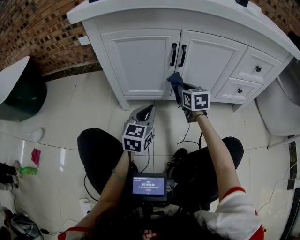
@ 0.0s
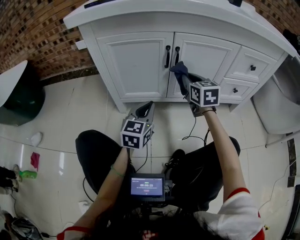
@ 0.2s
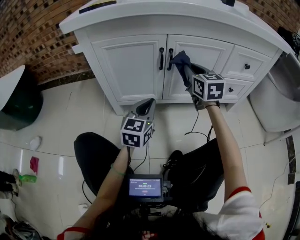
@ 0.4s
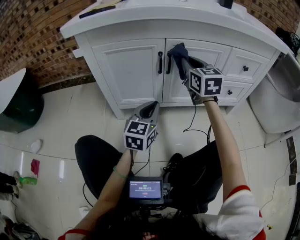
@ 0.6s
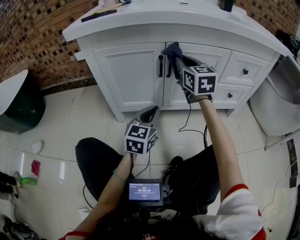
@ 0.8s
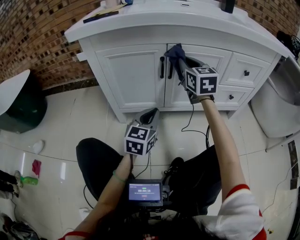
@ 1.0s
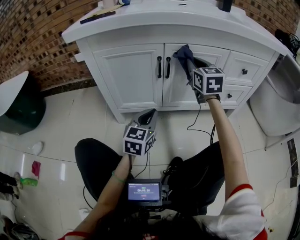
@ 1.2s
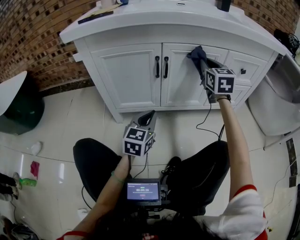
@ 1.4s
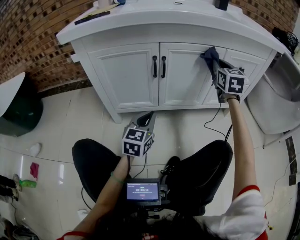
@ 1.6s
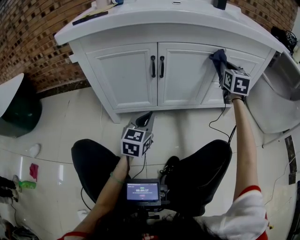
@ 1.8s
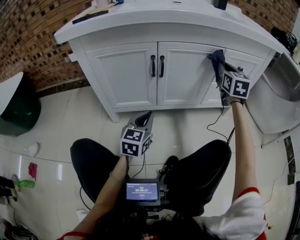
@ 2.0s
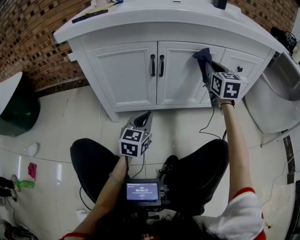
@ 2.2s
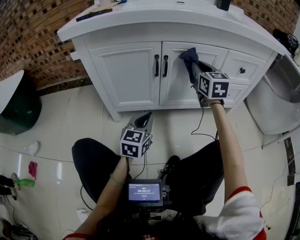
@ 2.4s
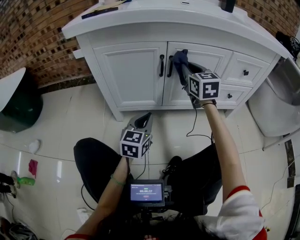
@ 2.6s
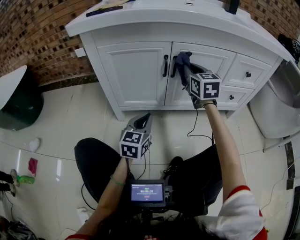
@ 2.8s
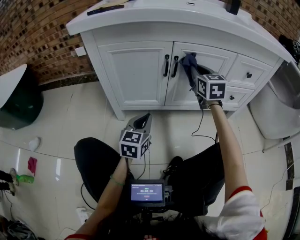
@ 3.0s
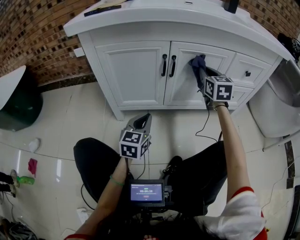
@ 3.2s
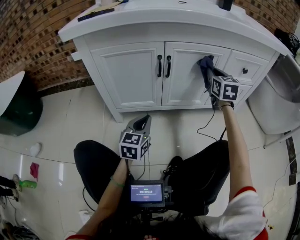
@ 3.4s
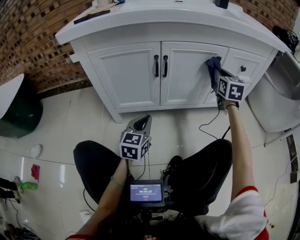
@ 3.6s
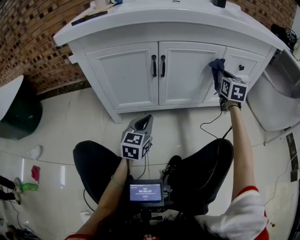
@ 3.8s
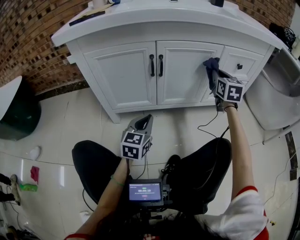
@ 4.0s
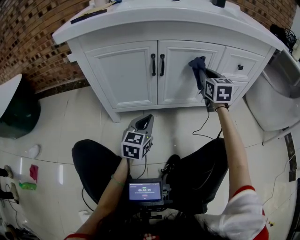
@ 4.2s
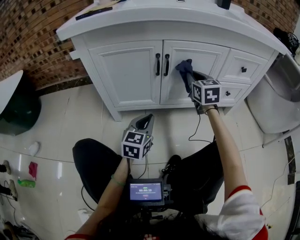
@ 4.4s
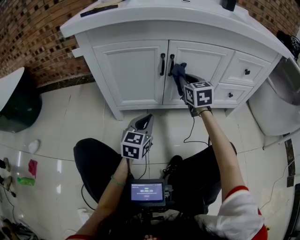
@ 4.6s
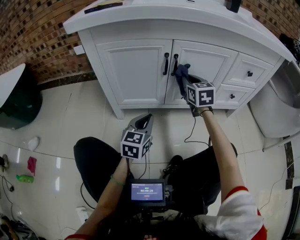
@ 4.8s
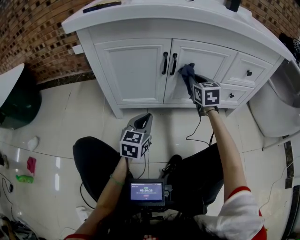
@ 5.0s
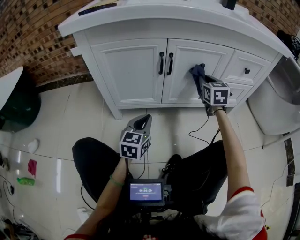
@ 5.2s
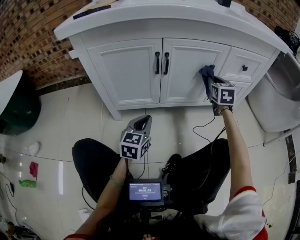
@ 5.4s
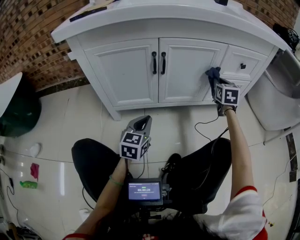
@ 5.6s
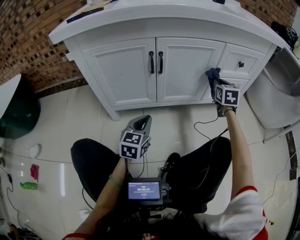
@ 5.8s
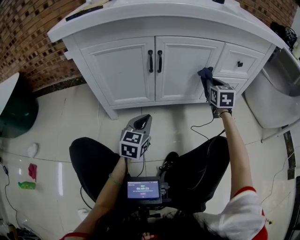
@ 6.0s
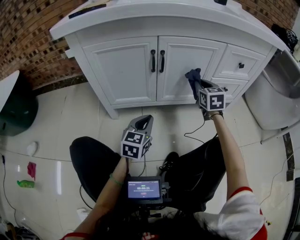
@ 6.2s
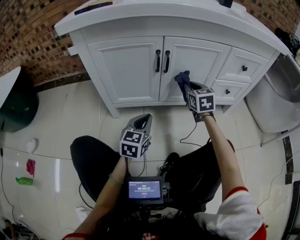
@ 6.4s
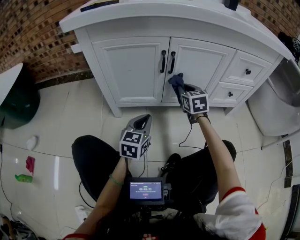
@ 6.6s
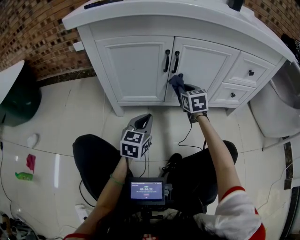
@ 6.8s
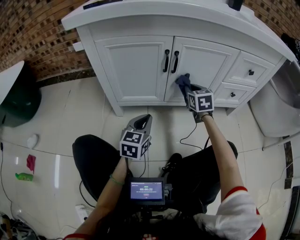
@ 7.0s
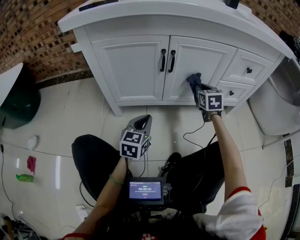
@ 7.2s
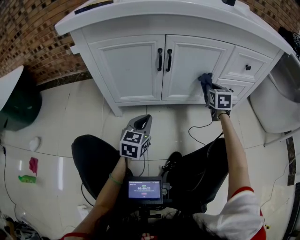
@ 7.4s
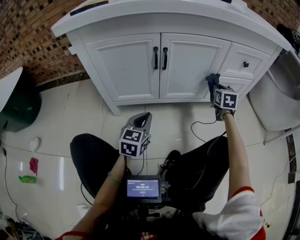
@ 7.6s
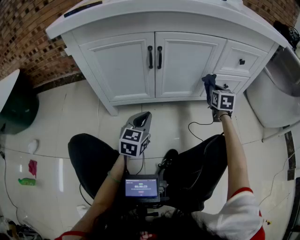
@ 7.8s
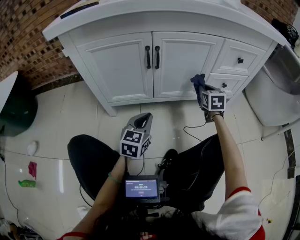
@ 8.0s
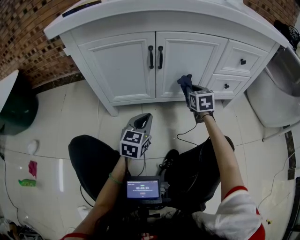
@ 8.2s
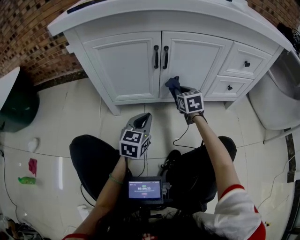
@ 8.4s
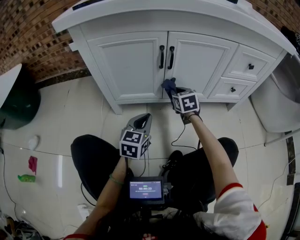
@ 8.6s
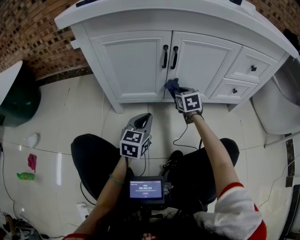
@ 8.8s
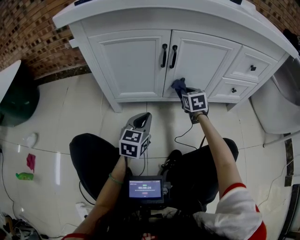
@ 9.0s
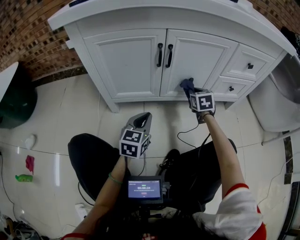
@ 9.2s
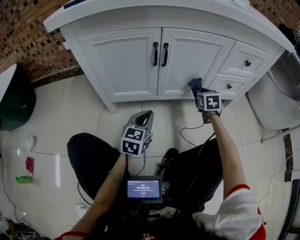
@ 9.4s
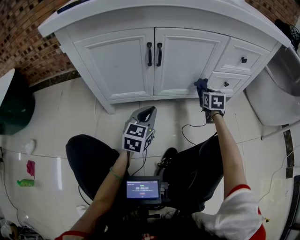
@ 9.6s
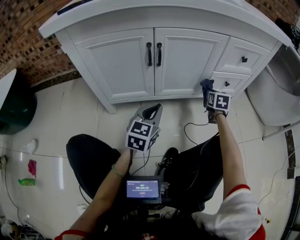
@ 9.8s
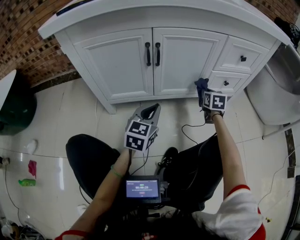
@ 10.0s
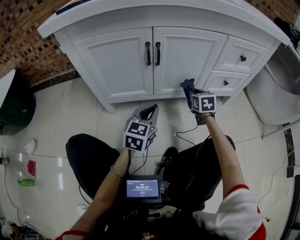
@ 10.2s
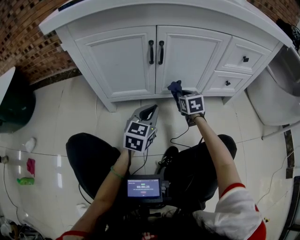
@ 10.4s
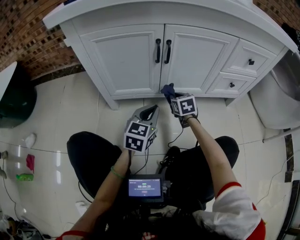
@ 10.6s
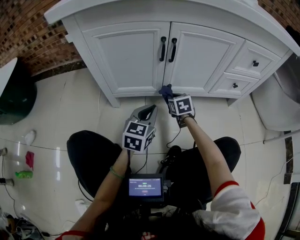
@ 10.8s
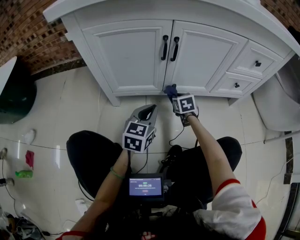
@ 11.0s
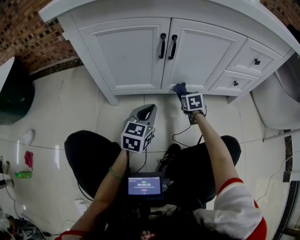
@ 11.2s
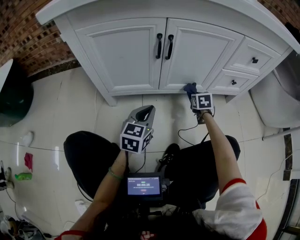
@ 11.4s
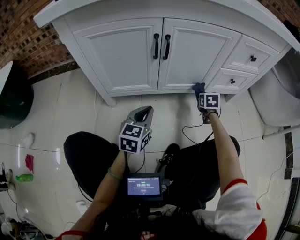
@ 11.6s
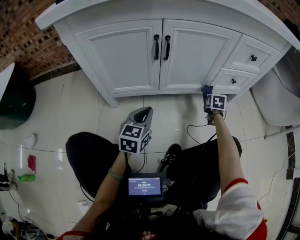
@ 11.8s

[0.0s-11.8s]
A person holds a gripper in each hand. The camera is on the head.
0.0s to 1.4s: The right gripper shifts approximately 25 cm upward and to the right, and turns by approximately 30 degrees. The left gripper travels to the right by some 5 cm.
1.4s to 3.0s: The two grippers go some 5 cm to the left.
3.0s to 4.4s: The right gripper goes to the right and returns, about 20 cm each way.
4.4s to 6.0s: The right gripper swings left and right, approximately 25 cm each way, with 2 reversals.
6.0s to 7.4s: The right gripper moves downward, about 5 cm, and goes to the left and returns, about 20 cm each way.
7.4s to 8.8s: The right gripper is displaced to the left and downward by approximately 20 cm.
8.8s to 10.4s: The left gripper is displaced to the right by about 5 cm, while the right gripper goes to the right and returns, roughly 25 cm each way.
10.4s to 11.8s: The left gripper moves about 5 cm; the right gripper goes some 20 cm to the right and downward, and rotates some 30 degrees.

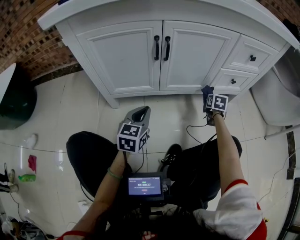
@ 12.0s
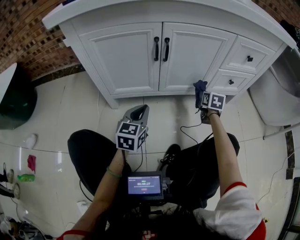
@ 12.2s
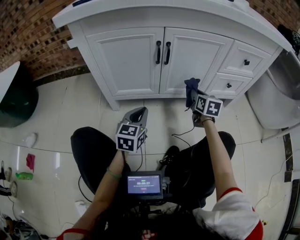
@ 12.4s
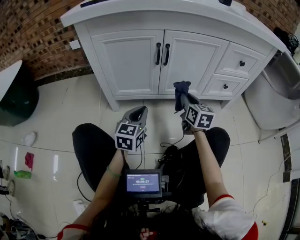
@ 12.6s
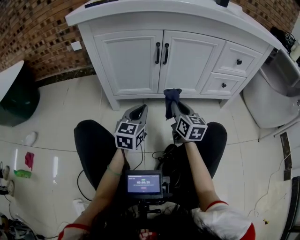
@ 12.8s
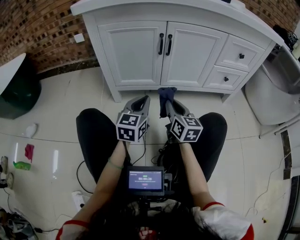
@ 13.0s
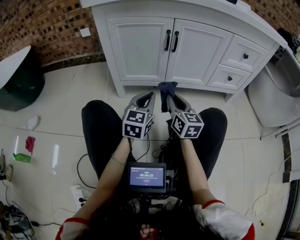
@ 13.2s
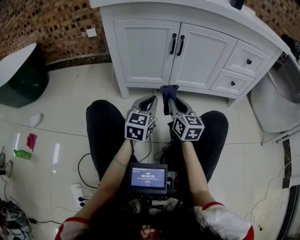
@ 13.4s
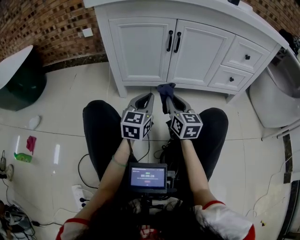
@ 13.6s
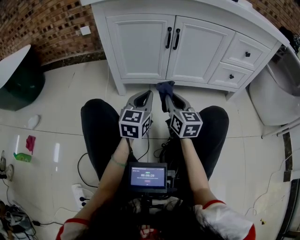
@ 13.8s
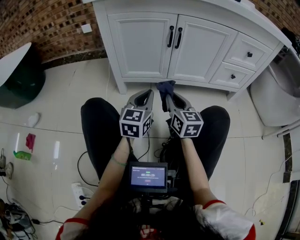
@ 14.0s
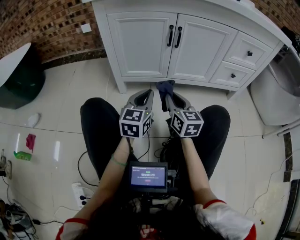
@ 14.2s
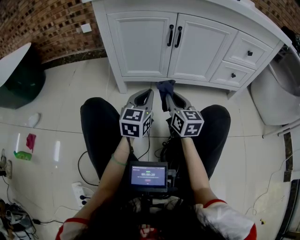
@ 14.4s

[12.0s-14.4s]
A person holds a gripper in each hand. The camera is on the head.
12.0s to 13.2s: The left gripper travels backward and upward by roughly 15 cm. Meanwhile the right gripper goes approximately 40 cm to the left, backward and upward, and tilts its fingers some 40 degrees upward.
13.2s to 14.4s: The grippers make only small movements.

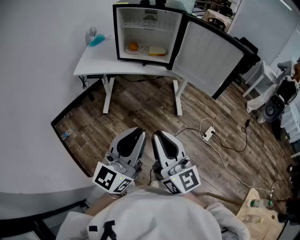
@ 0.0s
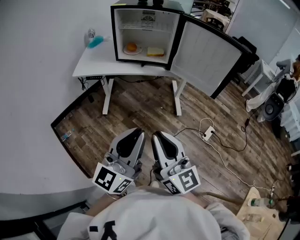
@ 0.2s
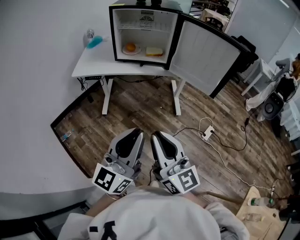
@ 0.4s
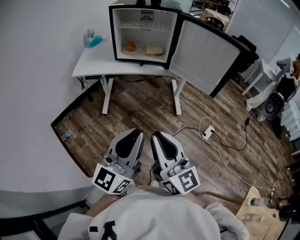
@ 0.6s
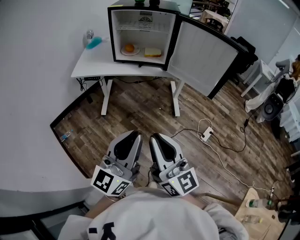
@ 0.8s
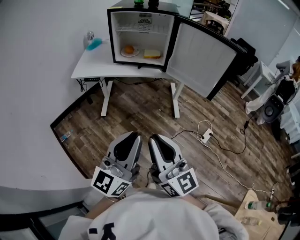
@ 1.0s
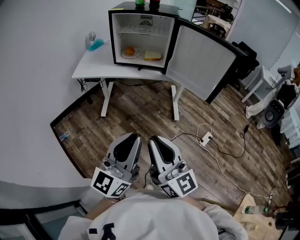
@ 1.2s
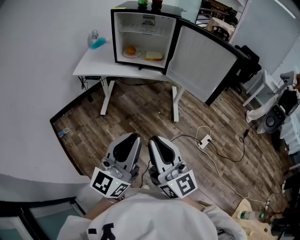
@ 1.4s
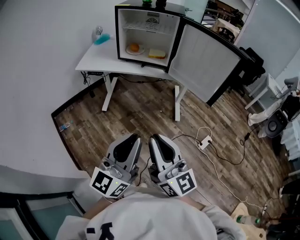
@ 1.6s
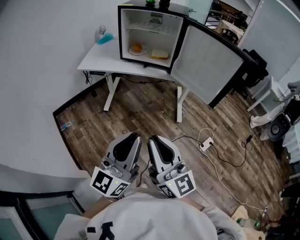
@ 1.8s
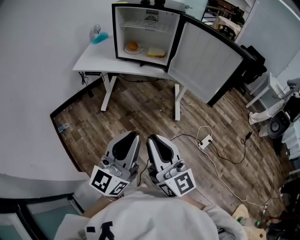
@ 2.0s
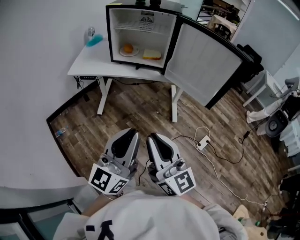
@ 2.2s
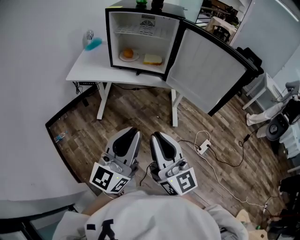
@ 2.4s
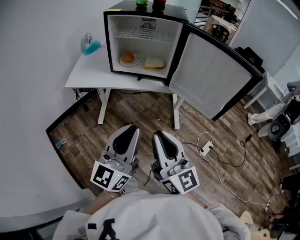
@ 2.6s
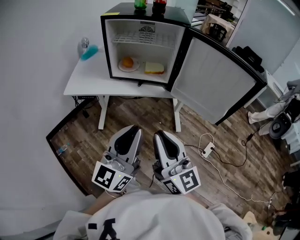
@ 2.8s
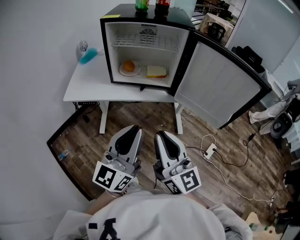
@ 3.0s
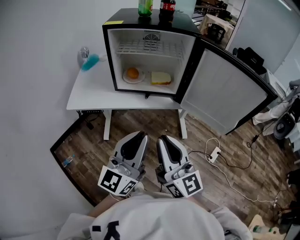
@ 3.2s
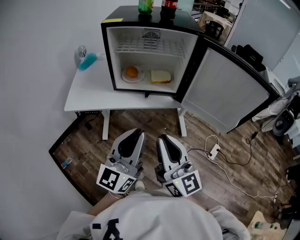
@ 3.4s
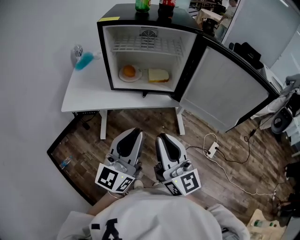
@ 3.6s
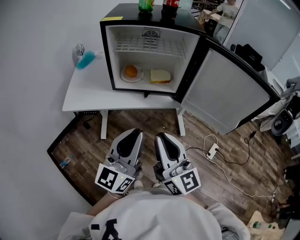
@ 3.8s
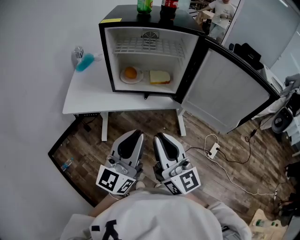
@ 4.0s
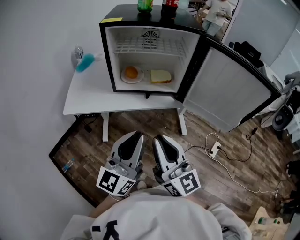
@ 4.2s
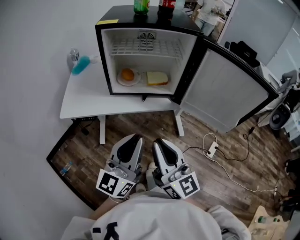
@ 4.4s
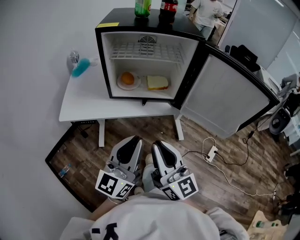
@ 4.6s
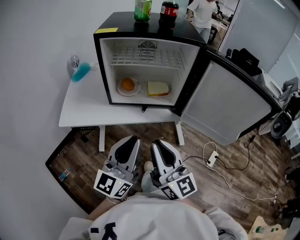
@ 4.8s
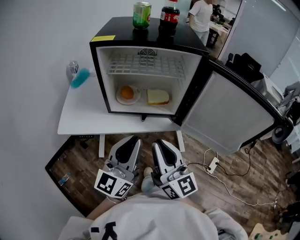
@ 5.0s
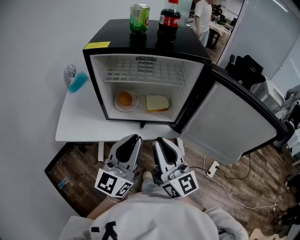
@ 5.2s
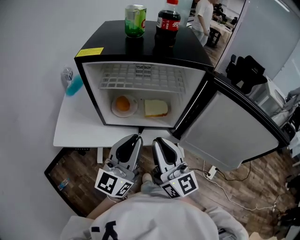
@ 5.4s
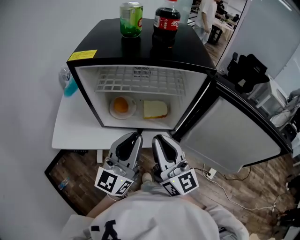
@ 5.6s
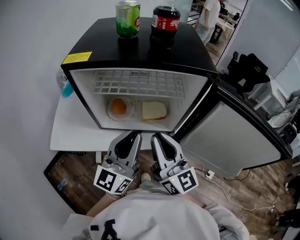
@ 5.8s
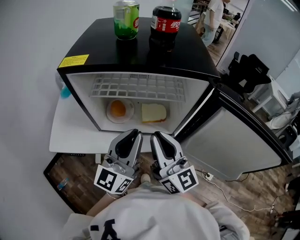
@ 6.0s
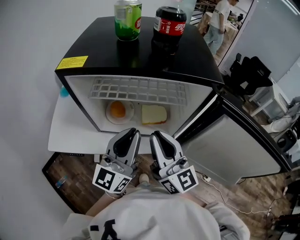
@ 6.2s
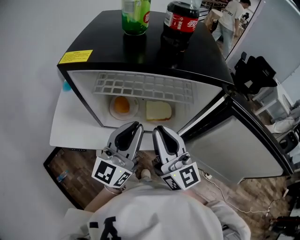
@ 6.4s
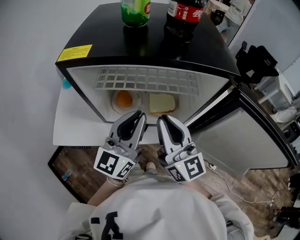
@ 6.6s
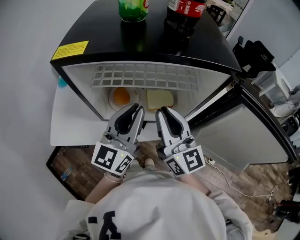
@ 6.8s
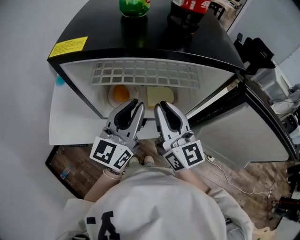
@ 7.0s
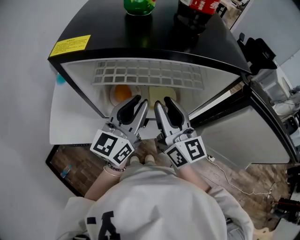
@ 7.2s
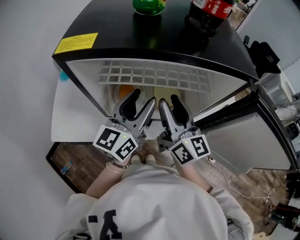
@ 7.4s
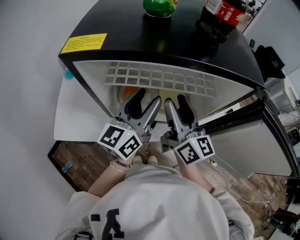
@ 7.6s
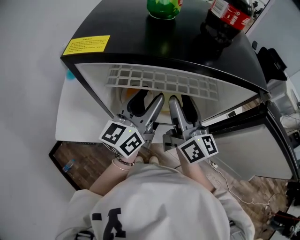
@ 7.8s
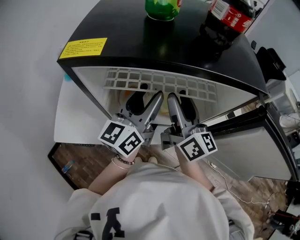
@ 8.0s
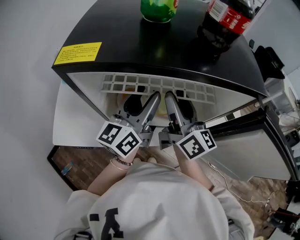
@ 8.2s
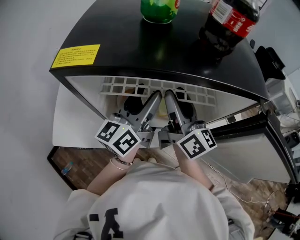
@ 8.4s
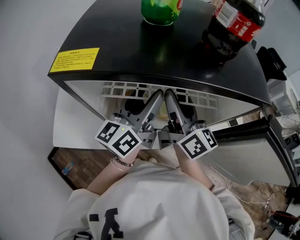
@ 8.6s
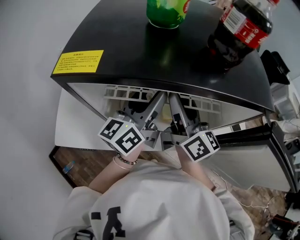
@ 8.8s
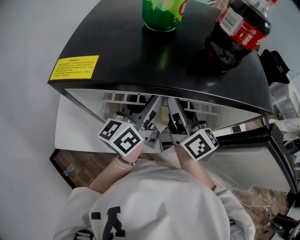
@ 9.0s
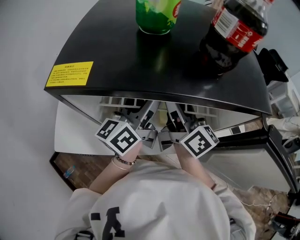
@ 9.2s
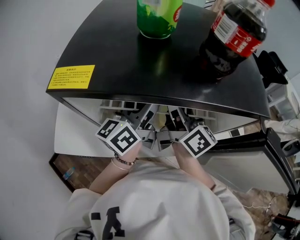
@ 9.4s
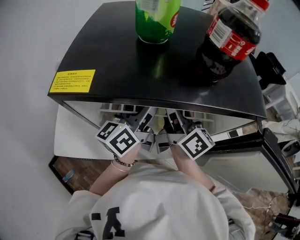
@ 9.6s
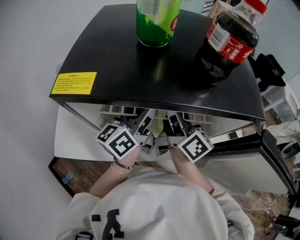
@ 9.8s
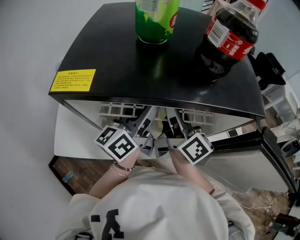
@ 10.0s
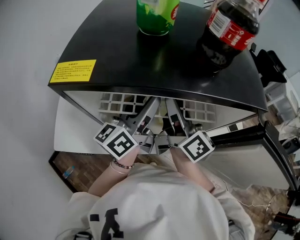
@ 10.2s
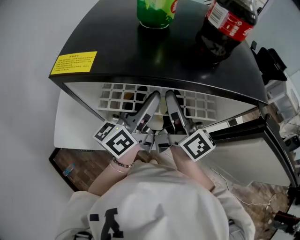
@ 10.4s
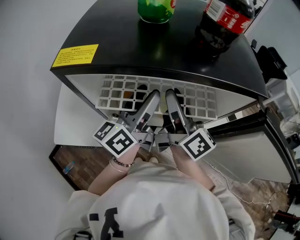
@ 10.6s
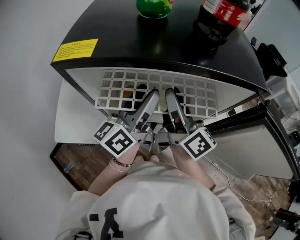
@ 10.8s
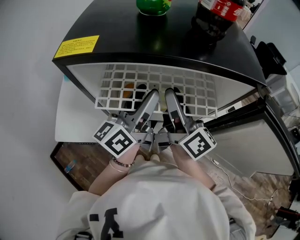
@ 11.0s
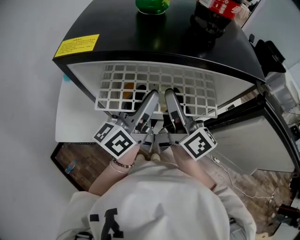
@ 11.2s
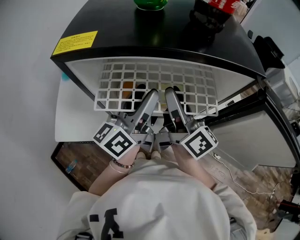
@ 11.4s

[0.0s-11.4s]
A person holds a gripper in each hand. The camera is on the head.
0.0s to 1.4s: The grippers both shift to the right by about 5 cm.
1.4s to 2.8s: The two grippers go approximately 20 cm forward.
2.8s to 4.2s: The grippers both shift forward and to the left by roughly 15 cm.
4.2s to 5.6s: The two grippers go roughly 25 cm forward.
5.6s to 7.2s: Both grippers move forward, roughly 15 cm.
7.2s to 8.6s: Both grippers move forward, some 10 cm. The right gripper opens its fingers, while the left gripper opens its fingers.
8.6s to 10.0s: There are only small adjustments of the grippers.
10.0s to 11.4s: The two grippers go some 5 cm backward.
